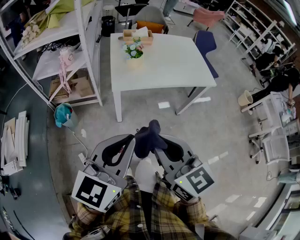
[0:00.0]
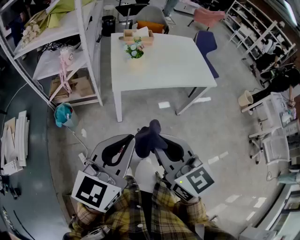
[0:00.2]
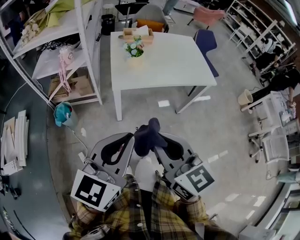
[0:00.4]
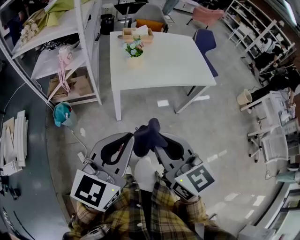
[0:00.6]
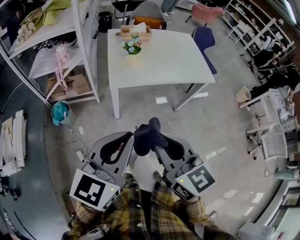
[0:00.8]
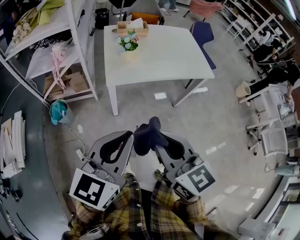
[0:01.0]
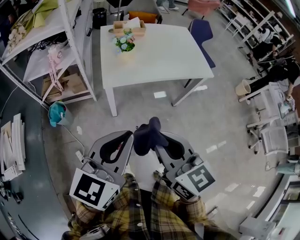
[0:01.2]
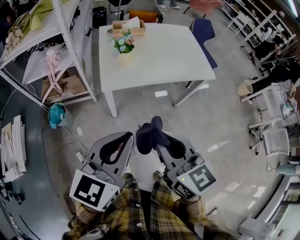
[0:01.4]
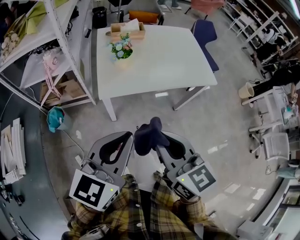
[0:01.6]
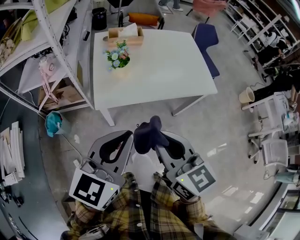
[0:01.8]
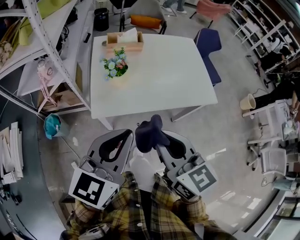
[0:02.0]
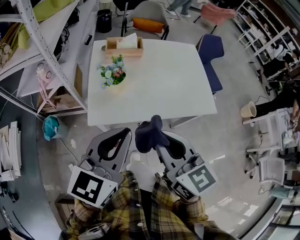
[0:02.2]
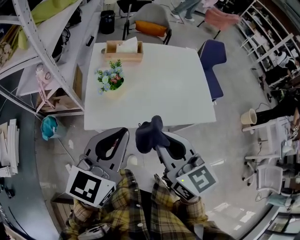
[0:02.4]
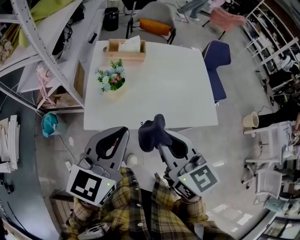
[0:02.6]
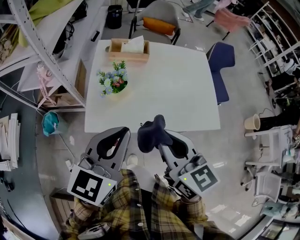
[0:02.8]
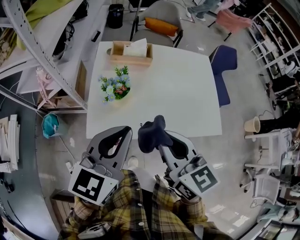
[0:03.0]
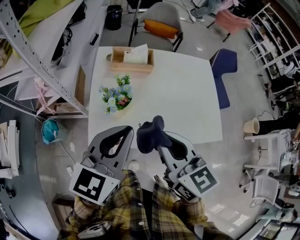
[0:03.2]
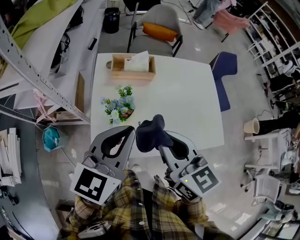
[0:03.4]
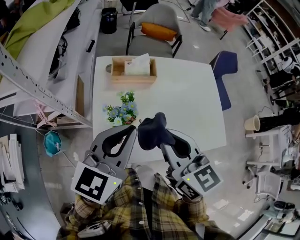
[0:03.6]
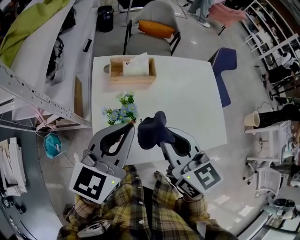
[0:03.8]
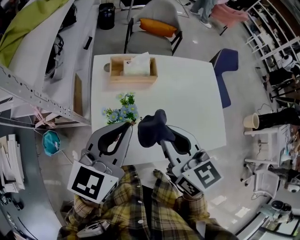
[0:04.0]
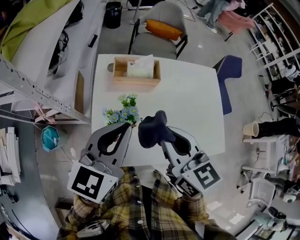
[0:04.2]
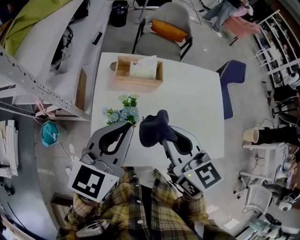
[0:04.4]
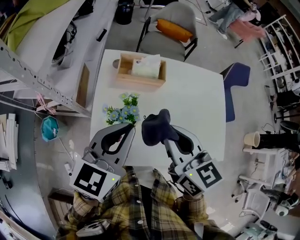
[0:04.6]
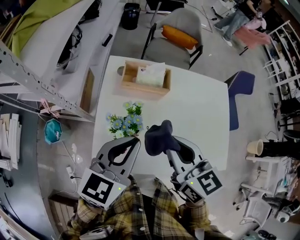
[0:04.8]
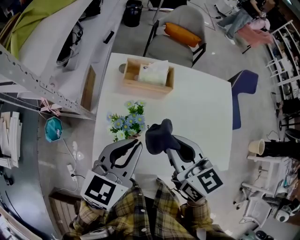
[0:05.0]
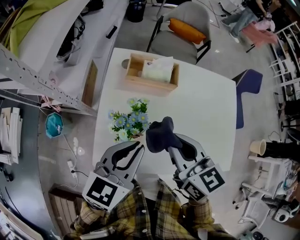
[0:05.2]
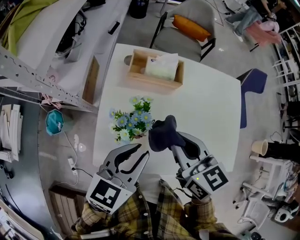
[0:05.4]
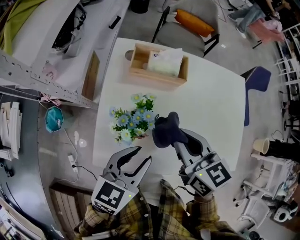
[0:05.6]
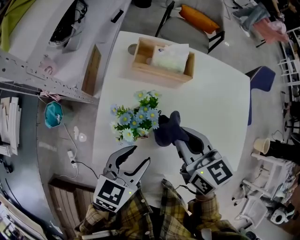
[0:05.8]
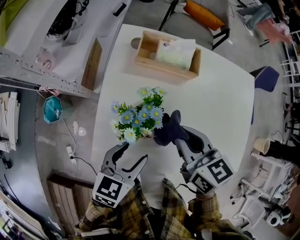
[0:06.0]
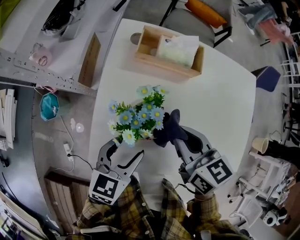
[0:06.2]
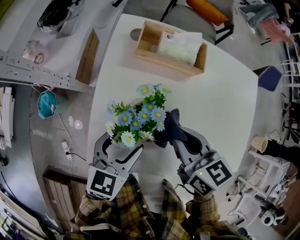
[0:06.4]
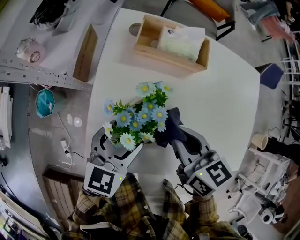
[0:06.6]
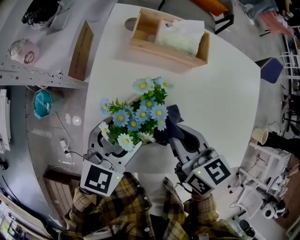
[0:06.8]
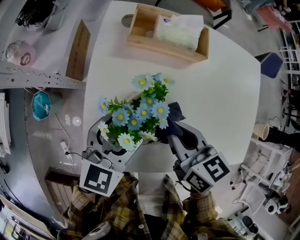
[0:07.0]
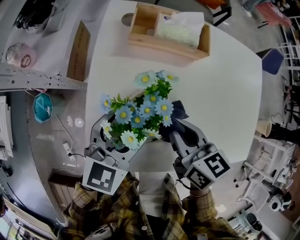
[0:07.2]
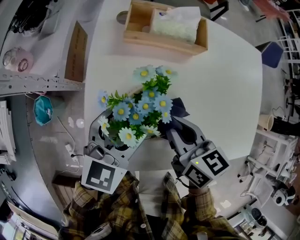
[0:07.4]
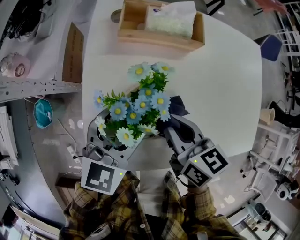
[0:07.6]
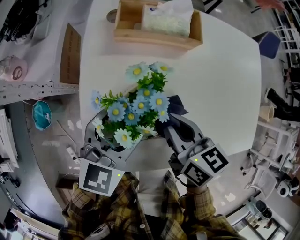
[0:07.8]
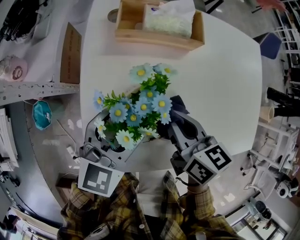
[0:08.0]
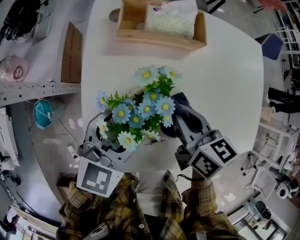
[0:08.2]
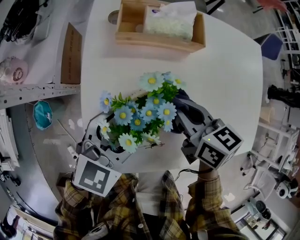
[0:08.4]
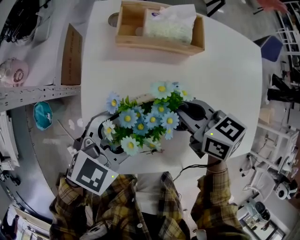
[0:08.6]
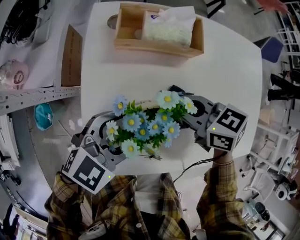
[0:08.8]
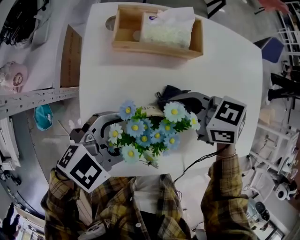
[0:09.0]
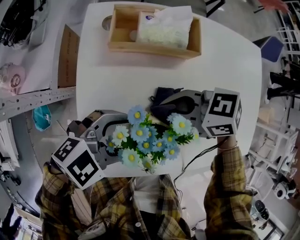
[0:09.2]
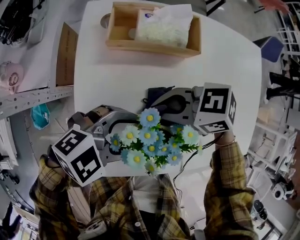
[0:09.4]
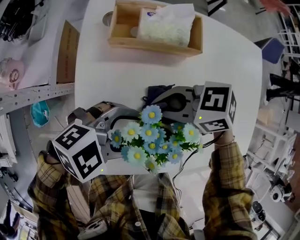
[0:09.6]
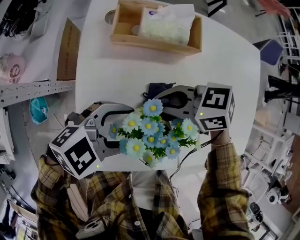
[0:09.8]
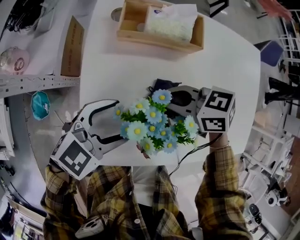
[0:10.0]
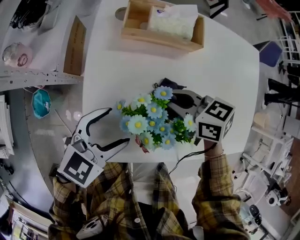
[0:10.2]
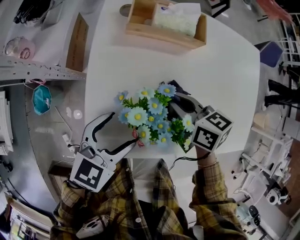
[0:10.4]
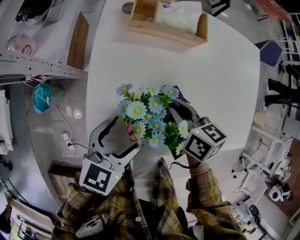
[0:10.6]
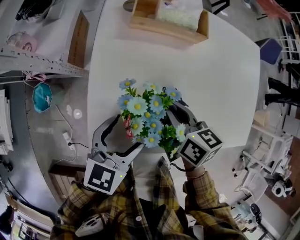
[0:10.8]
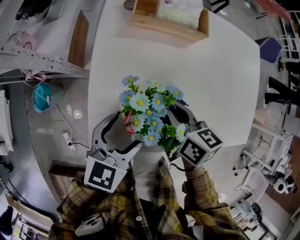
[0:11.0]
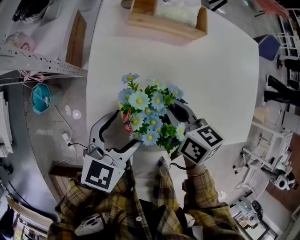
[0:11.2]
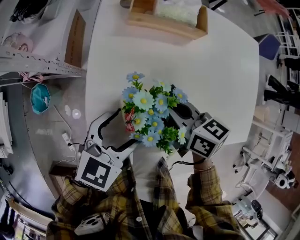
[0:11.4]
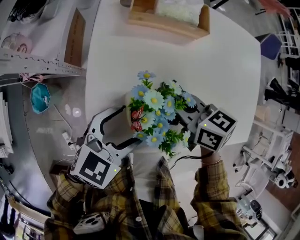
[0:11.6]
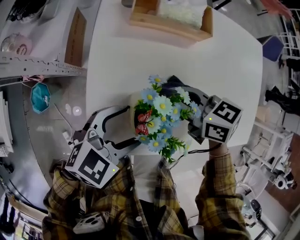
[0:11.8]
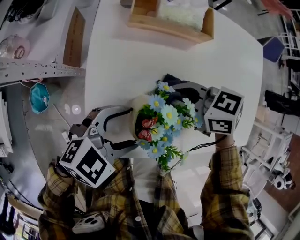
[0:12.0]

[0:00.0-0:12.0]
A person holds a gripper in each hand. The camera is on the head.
0:00.0 to 0:01.6: The right gripper heads forward and to the right, covering roughly 10 cm. The left gripper heads forward, covering roughly 10 cm.
0:01.6 to 0:03.0: Both grippers move forward, approximately 25 cm.
0:03.0 to 0:04.4: The grippers both shift forward by about 15 cm.
0:04.4 to 0:06.0: The grippers both shift downward by approximately 20 cm. The left gripper rotates approximately 20 degrees, and opens.
0:06.0 to 0:07.6: The right gripper is displaced downward by approximately 10 cm, while the left gripper heads forward, covering approximately 5 cm, and changes its angle by about 20 degrees.
0:07.6 to 0:09.0: The left gripper swivels some 40 degrees. Meanwhile the right gripper changes place by about 5 cm, and rotates some 40 degrees.
0:09.0 to 0:10.4: The right gripper swivels approximately 30 degrees. The left gripper ends up roughly 5 cm from where it was, and turns by approximately 30 degrees.
0:10.4 to 0:12.0: The left gripper rotates some 30 degrees, while the right gripper swivels some 30 degrees.

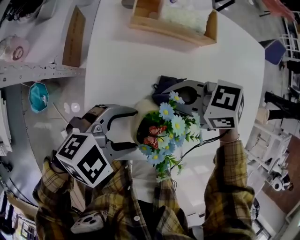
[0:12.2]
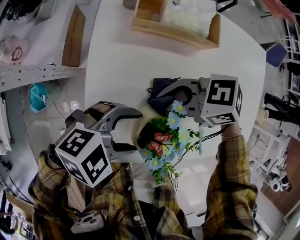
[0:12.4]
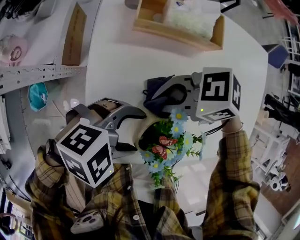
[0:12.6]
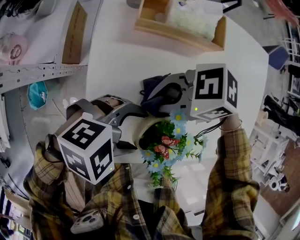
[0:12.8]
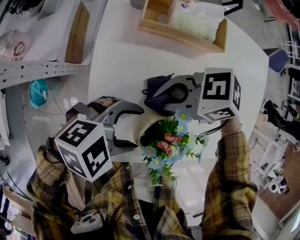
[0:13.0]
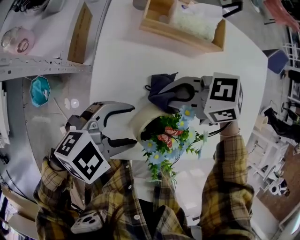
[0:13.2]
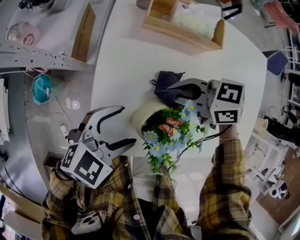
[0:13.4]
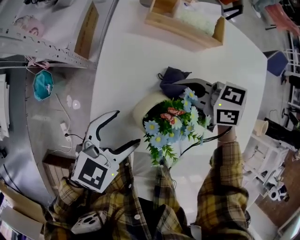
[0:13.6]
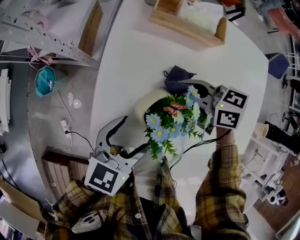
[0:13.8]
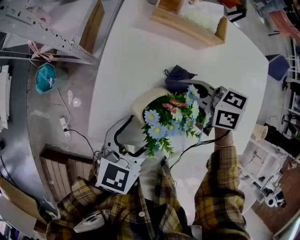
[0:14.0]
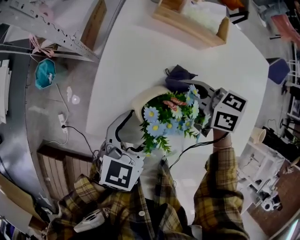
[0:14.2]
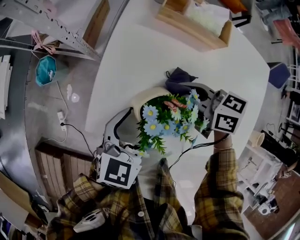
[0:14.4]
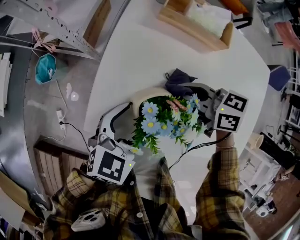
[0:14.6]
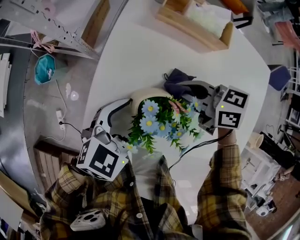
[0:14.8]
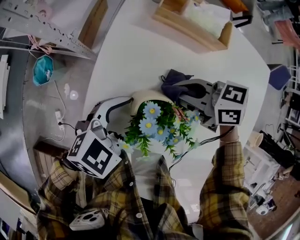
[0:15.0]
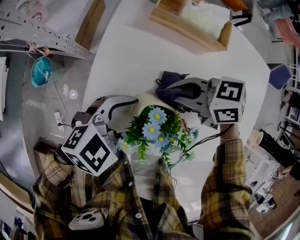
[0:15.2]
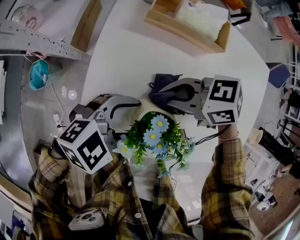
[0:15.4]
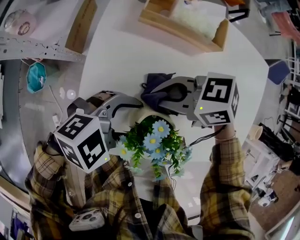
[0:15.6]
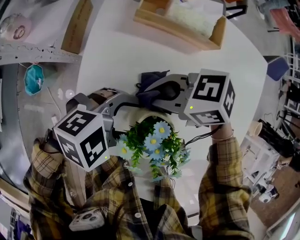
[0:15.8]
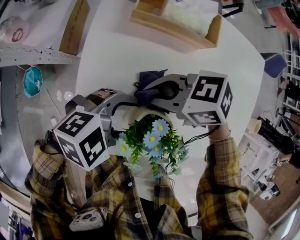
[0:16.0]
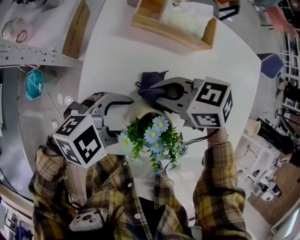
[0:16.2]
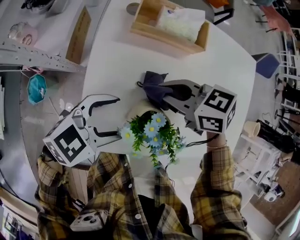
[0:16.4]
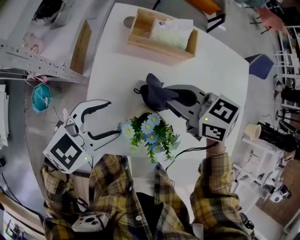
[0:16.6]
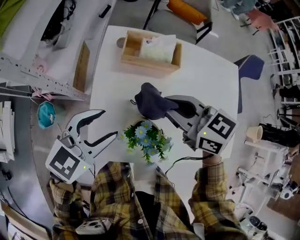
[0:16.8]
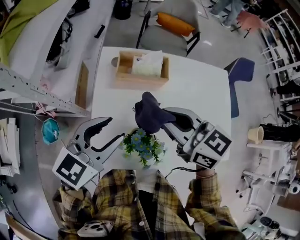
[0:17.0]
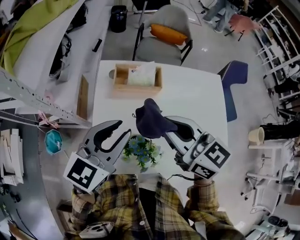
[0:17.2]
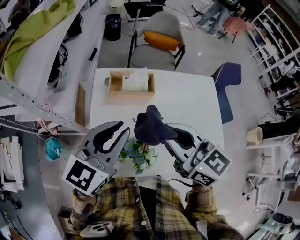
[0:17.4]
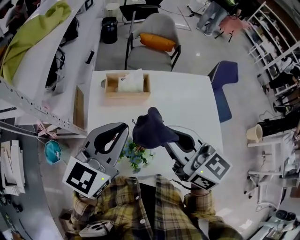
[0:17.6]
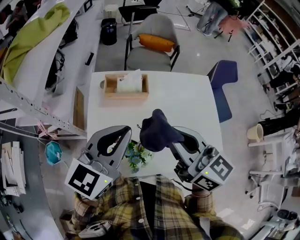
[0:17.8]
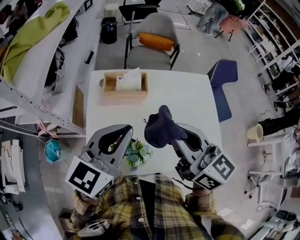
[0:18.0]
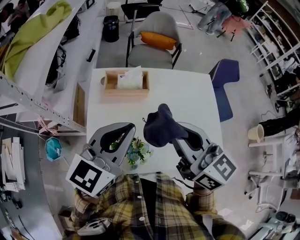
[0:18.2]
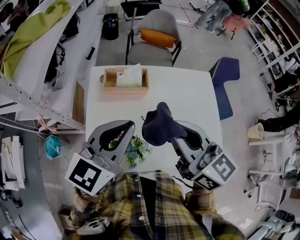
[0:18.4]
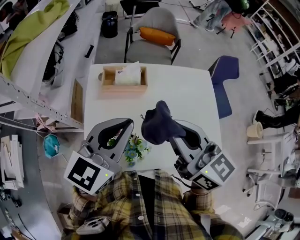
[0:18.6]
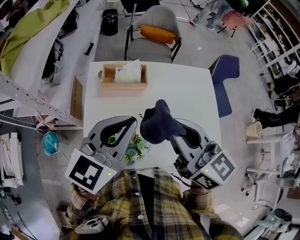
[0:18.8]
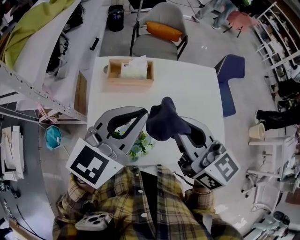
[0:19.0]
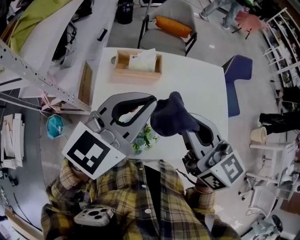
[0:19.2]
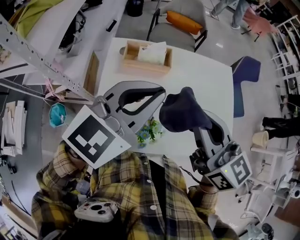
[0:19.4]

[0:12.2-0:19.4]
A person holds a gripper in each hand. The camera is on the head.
0:12.2 to 0:13.6: The left gripper turns by approximately 40 degrees.
0:13.6 to 0:15.0: The grippers move only a little.
0:15.0 to 0:16.6: Both grippers travel together upward, some 10 cm. The right gripper swivels some 20 degrees.
0:16.6 to 0:18.0: Both grippers travel together upward, about 25 cm. The left gripper turns by approximately 30 degrees, and closes. Meanwhile the right gripper changes its angle by approximately 50 degrees.
0:18.0 to 0:19.4: The grippers stay close to where they were, moving slightly.

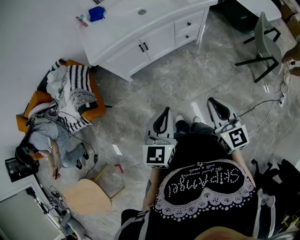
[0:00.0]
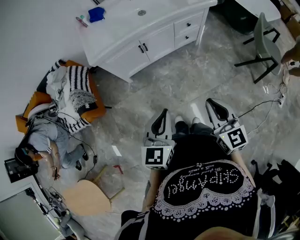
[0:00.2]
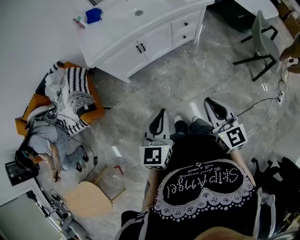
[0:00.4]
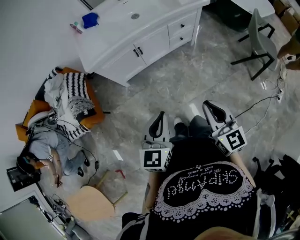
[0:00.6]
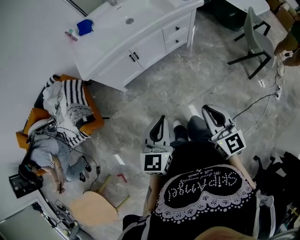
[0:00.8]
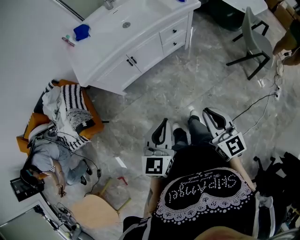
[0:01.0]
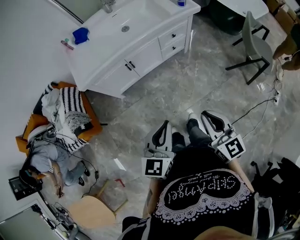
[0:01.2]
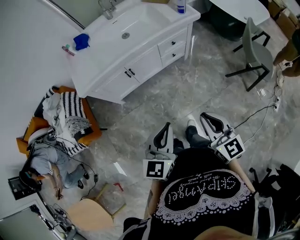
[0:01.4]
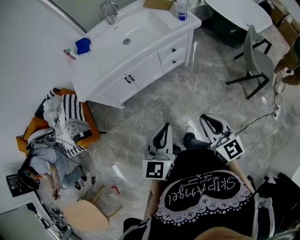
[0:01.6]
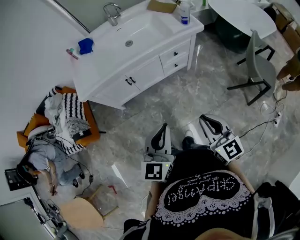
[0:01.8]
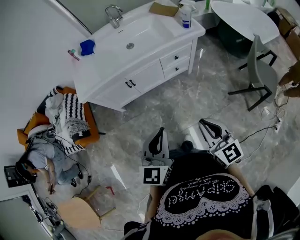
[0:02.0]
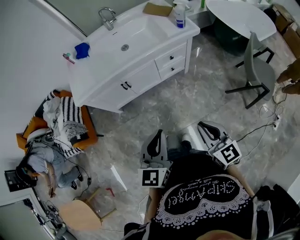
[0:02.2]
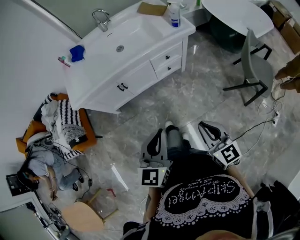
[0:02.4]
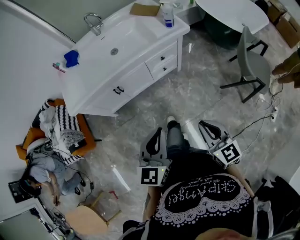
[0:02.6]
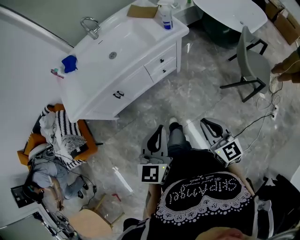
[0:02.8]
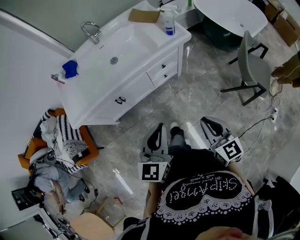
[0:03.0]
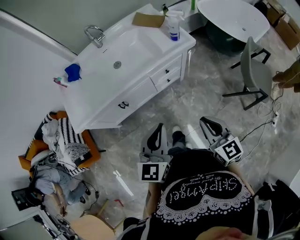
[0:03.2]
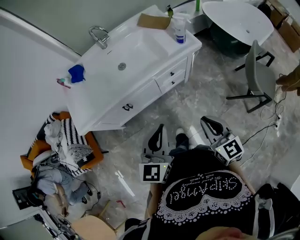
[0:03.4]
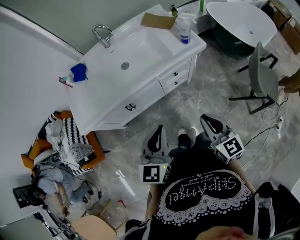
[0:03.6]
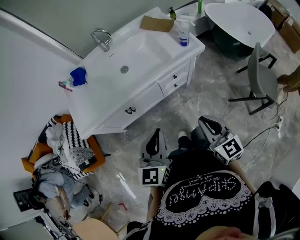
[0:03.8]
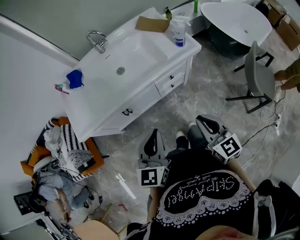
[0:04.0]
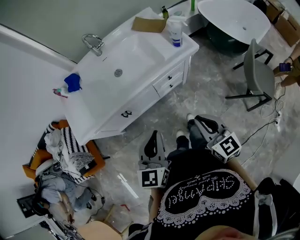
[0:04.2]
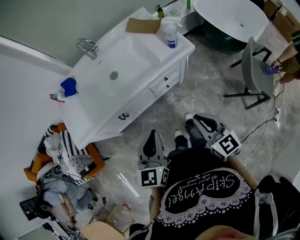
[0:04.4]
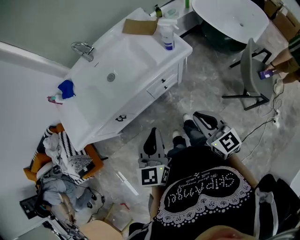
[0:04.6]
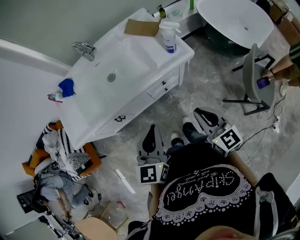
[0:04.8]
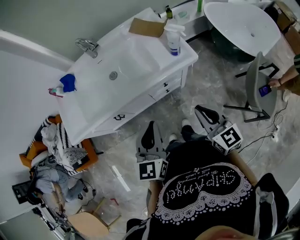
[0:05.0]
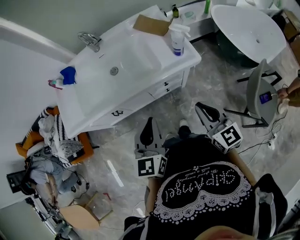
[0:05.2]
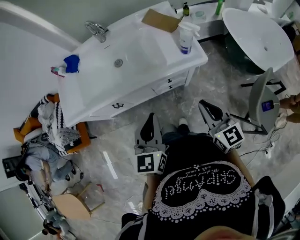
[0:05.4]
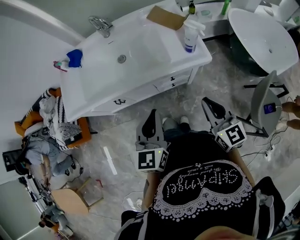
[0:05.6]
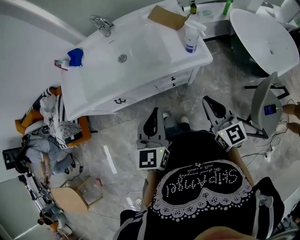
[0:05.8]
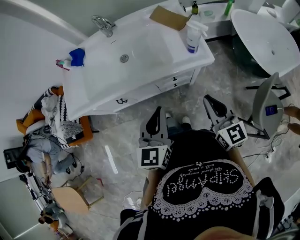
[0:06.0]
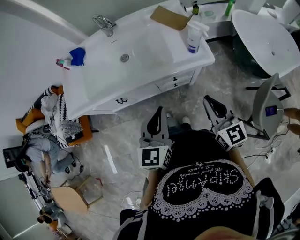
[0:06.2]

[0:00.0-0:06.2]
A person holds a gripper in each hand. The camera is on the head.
0:00.0 to 0:01.6: Both grippers move to the right and forward, roughly 15 cm.
0:01.6 to 0:03.2: The left gripper heads forward, covering roughly 15 cm. The right gripper heads forward and to the right, covering some 15 cm.
0:03.2 to 0:04.6: Both grippers travel together forward, roughly 10 cm.
0:04.6 to 0:06.2: The left gripper shifts roughly 10 cm to the right and forward, while the right gripper travels forward and to the right by about 15 cm.
